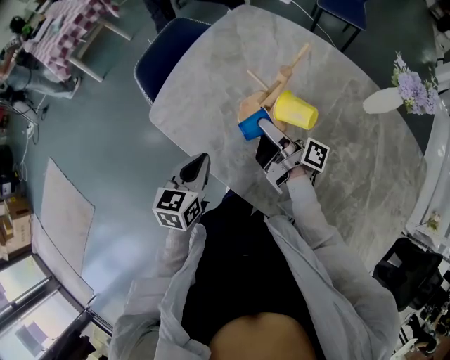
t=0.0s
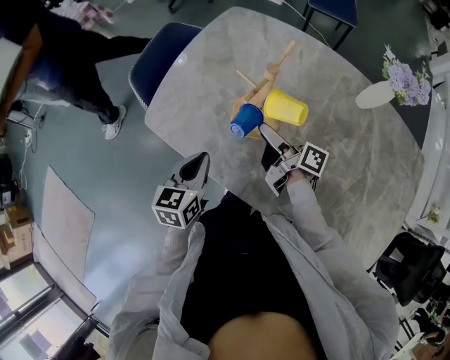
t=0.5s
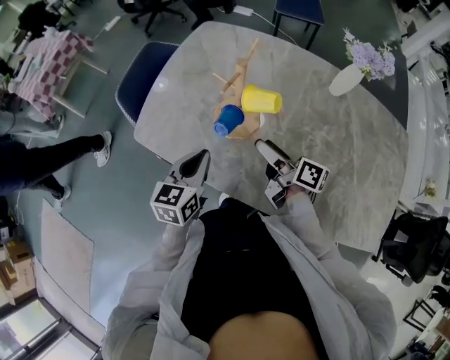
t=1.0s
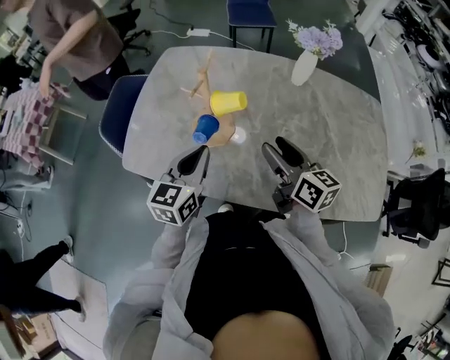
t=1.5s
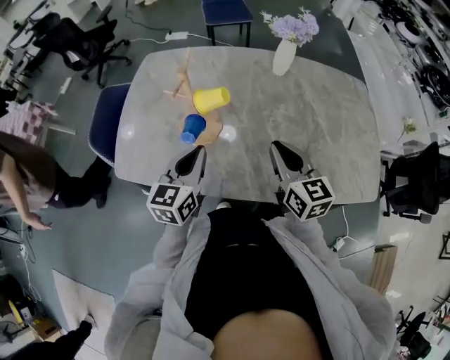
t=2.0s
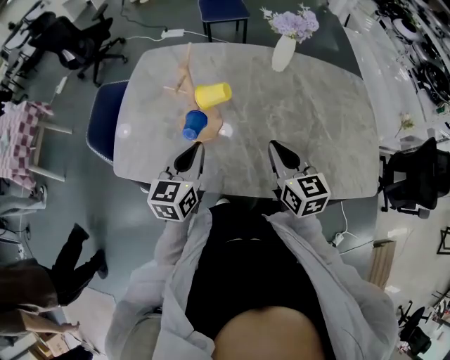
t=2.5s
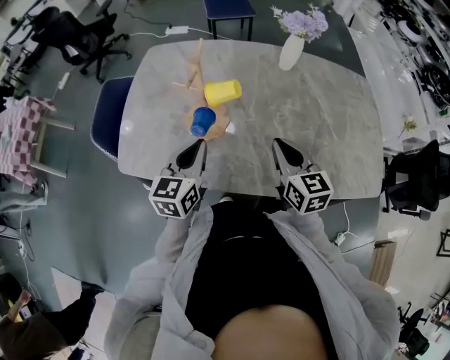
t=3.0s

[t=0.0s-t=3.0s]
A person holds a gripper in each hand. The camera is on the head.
t=0.0s to t=1.5s: The right gripper changes place by roughly 20 cm, and twists about 60 degrees counterclockwise, seen from behind; the left gripper shifts by approximately 15 cm, and rotates roughly 30 degrees.
t=1.5s to t=3.0s: The right gripper swivels about 30 degrees, and closes up.

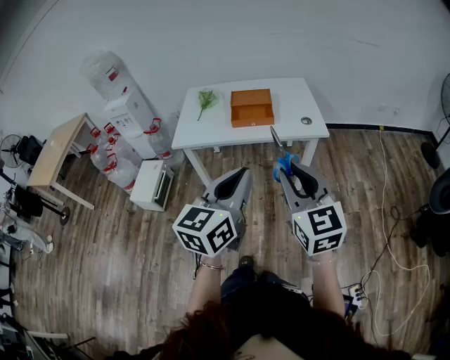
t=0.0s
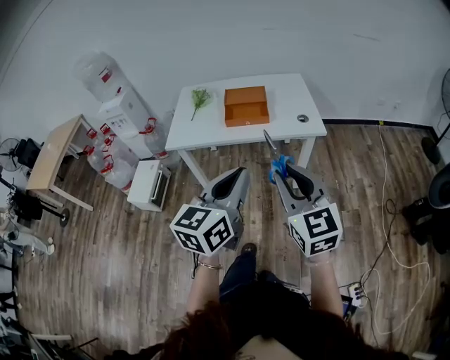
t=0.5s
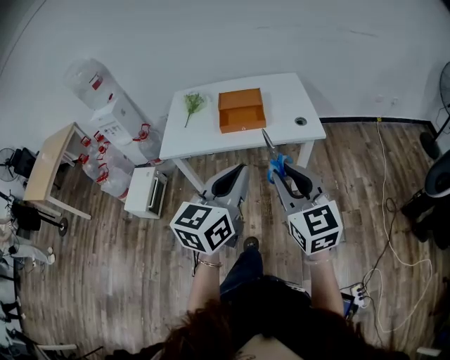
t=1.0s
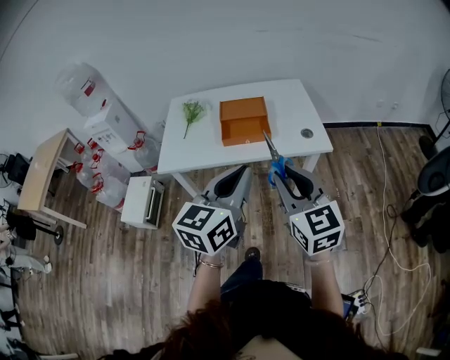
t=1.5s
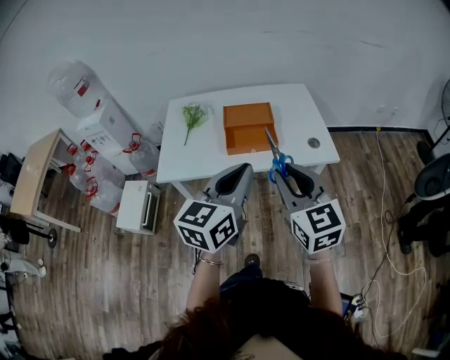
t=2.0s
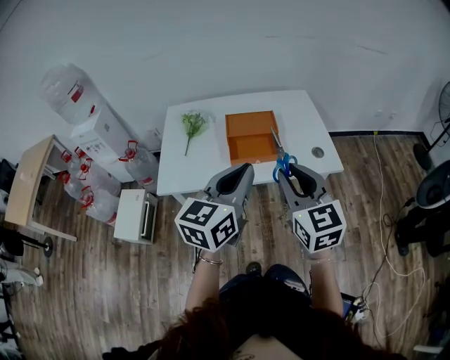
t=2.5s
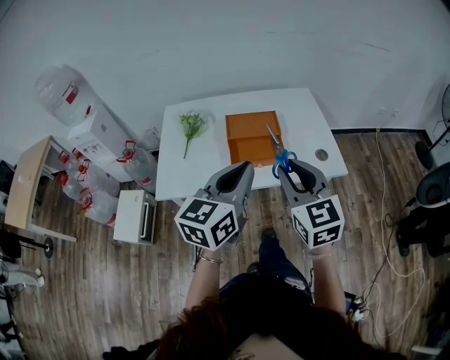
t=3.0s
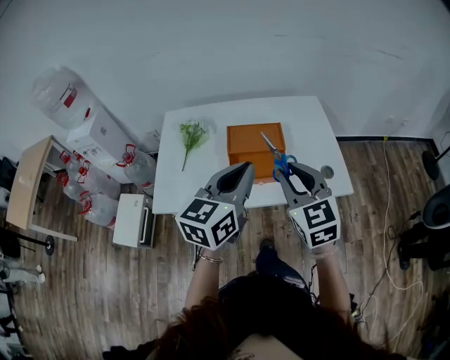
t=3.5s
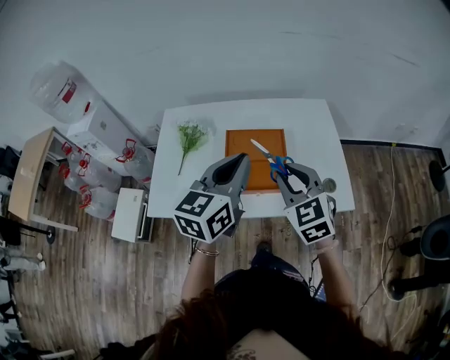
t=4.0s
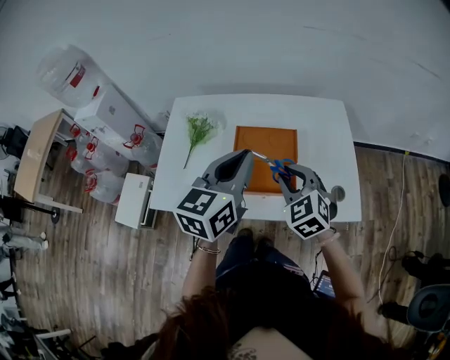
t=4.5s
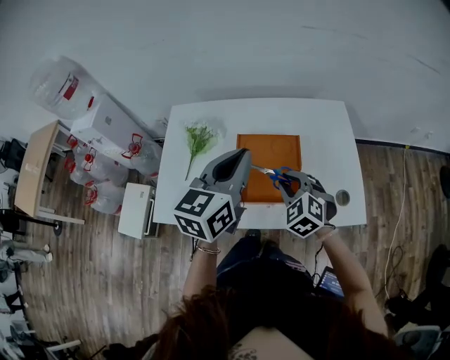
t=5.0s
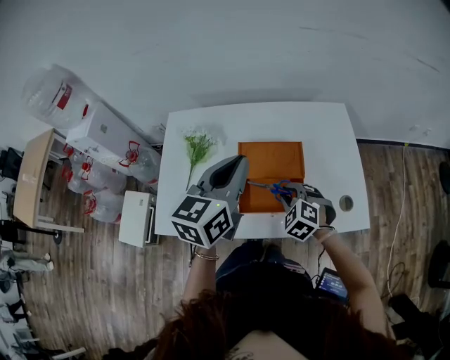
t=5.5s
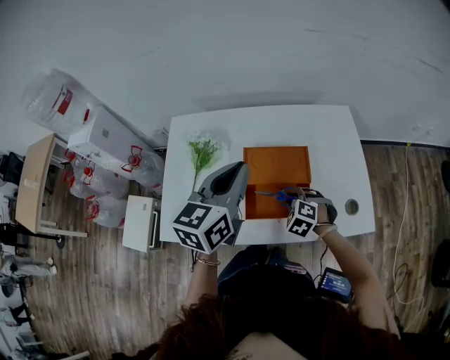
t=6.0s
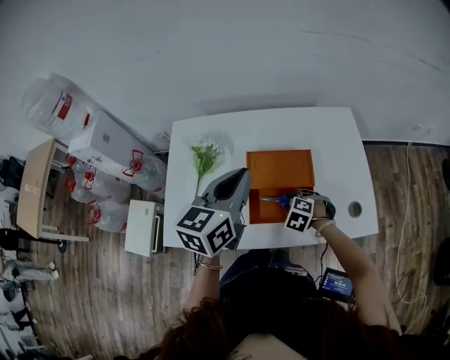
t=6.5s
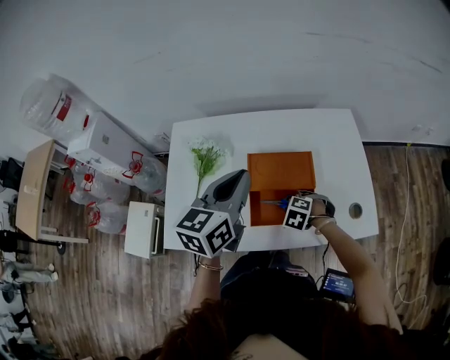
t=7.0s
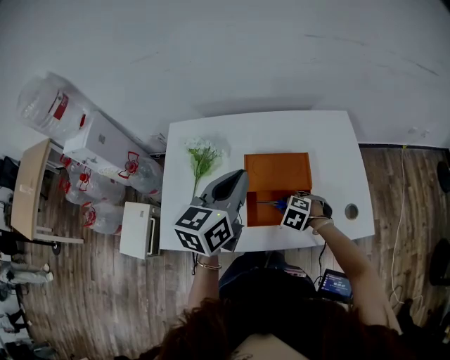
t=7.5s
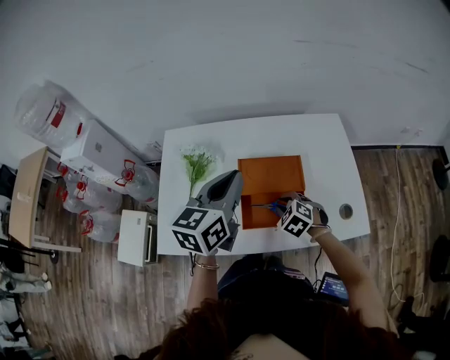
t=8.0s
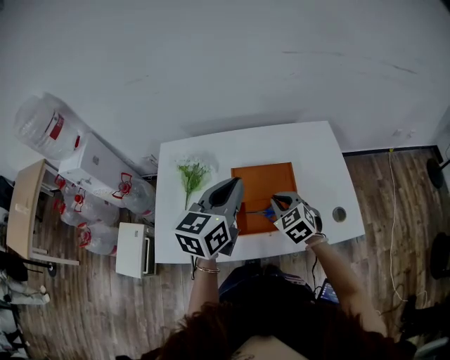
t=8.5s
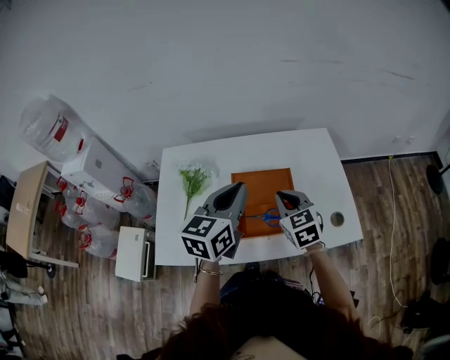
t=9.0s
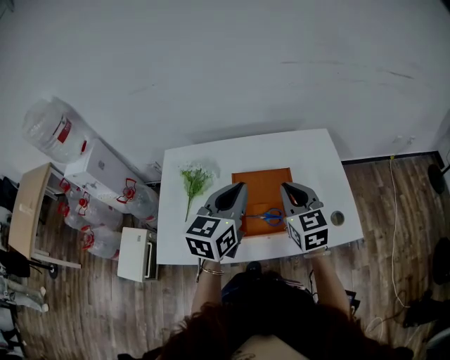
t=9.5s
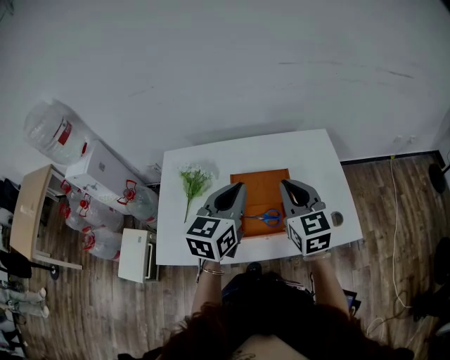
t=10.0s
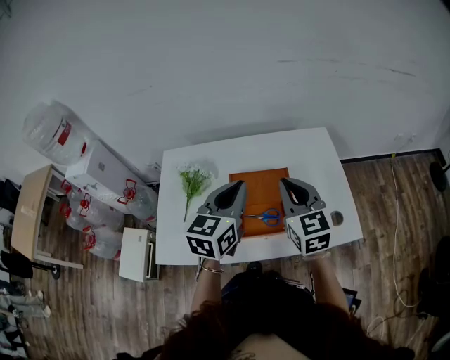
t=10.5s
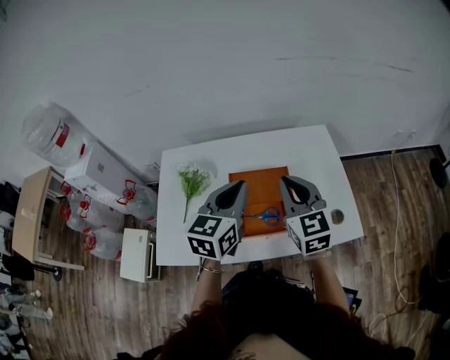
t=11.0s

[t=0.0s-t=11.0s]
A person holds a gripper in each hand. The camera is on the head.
t=0.0s to t=2.0s: The grippers both shift forward by roughly 25 cm.
t=2.0s to t=3.5s: The two grippers go approximately 20 cm forward.
t=3.5s to t=5.5s: The right gripper shifts about 25 cm downward and forward, and tilts its fingers roughly 40 degrees downward, while the left gripper moves forward, some 20 cm.
t=5.5s to t=7.5s: The right gripper travels downward by roughly 10 cm, and swivels roughly 20 degrees.
t=7.5s to t=9.0s: The right gripper is displaced upward by approximately 20 cm, points its fingers roughly 50 degrees further upward, and closes its fingers.
t=9.0s to t=11.0s: The right gripper goes about 10 cm upward.

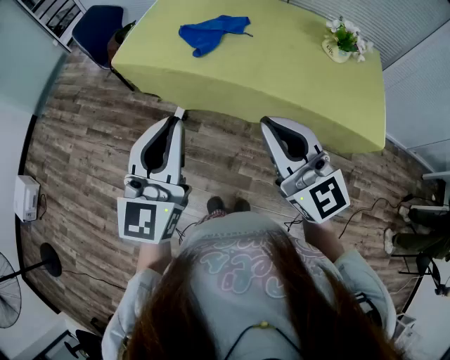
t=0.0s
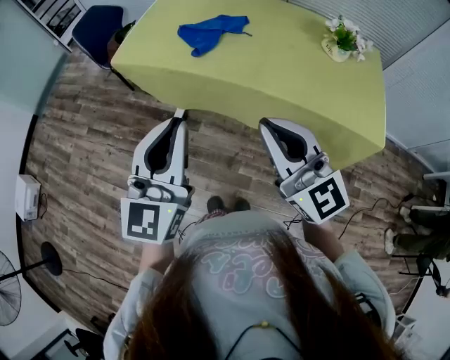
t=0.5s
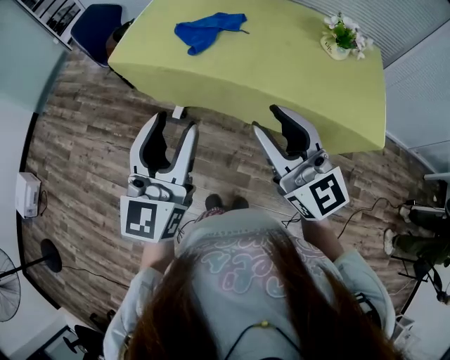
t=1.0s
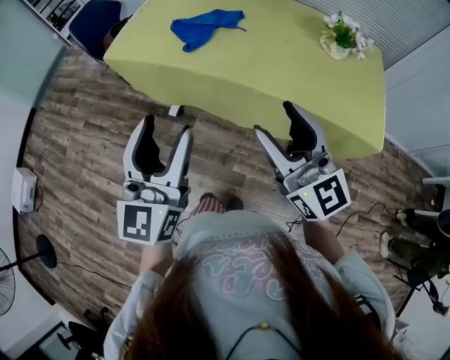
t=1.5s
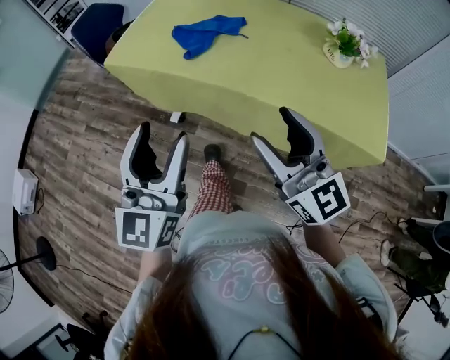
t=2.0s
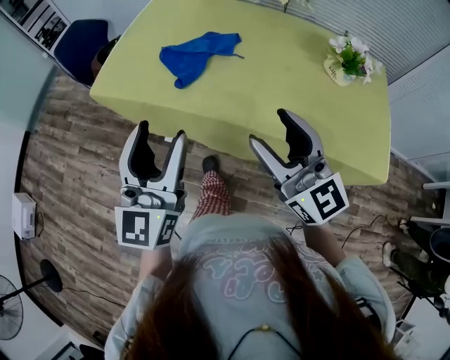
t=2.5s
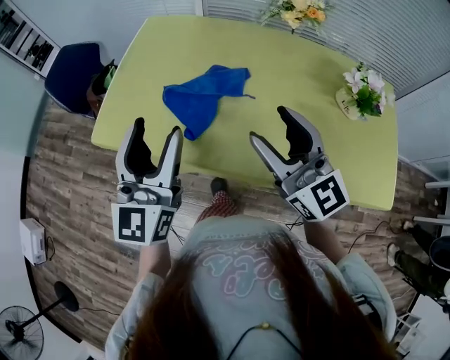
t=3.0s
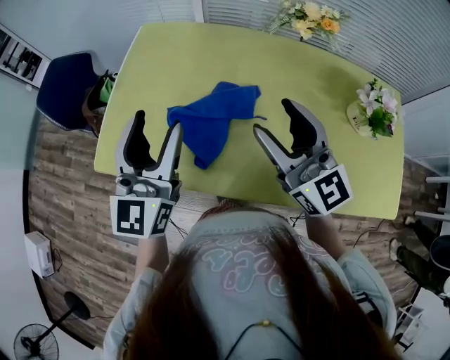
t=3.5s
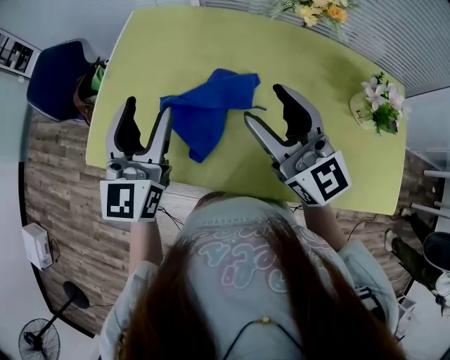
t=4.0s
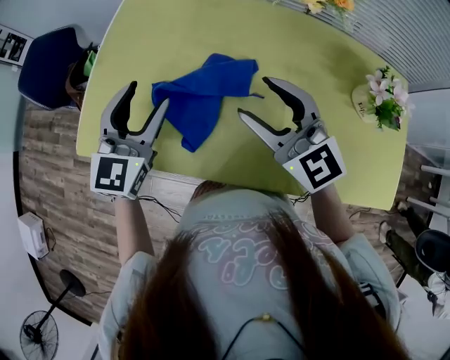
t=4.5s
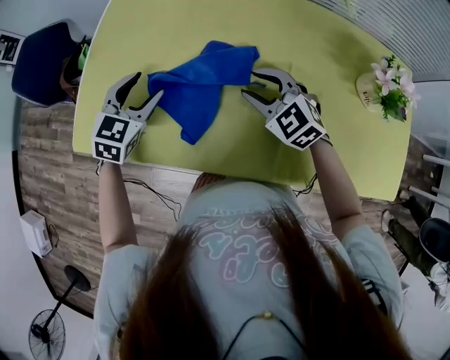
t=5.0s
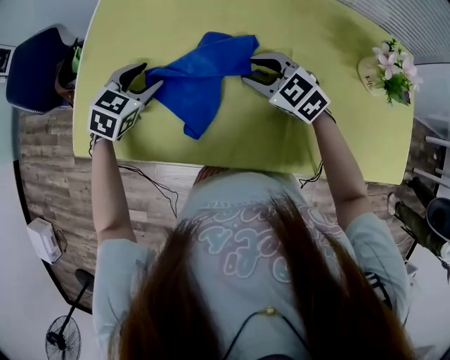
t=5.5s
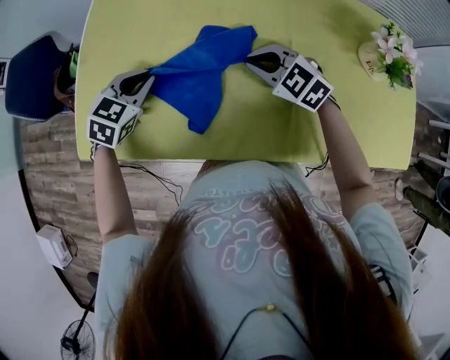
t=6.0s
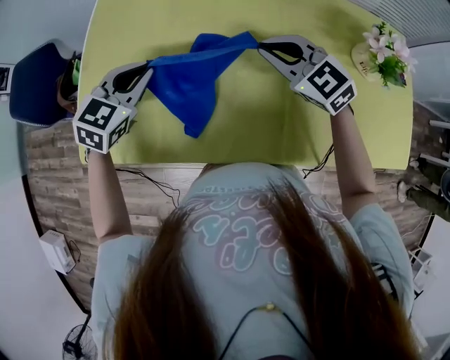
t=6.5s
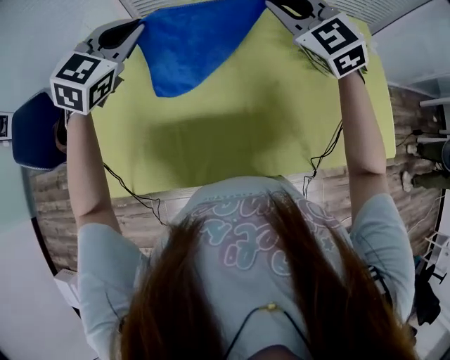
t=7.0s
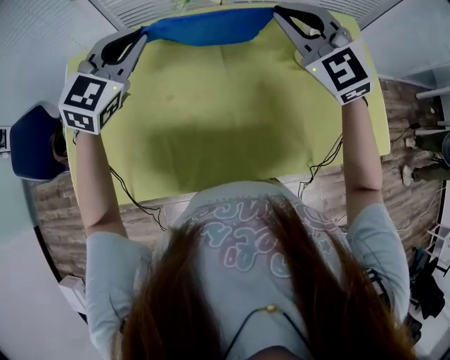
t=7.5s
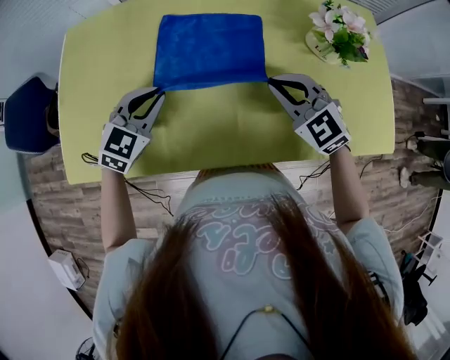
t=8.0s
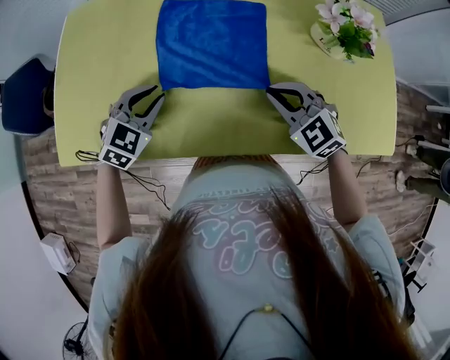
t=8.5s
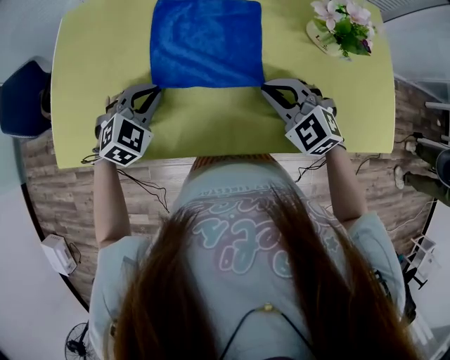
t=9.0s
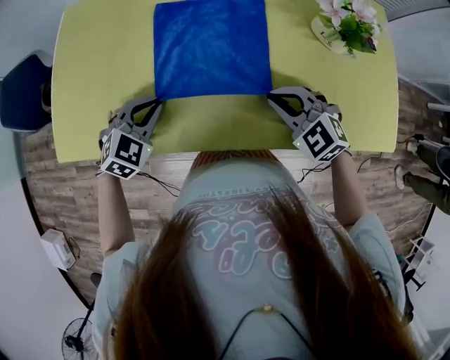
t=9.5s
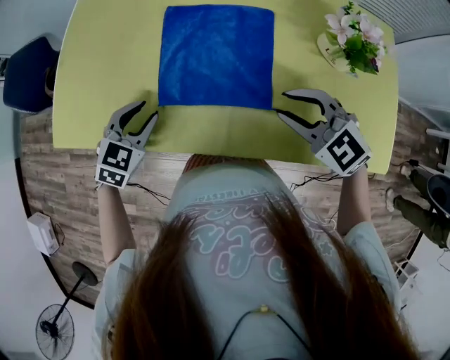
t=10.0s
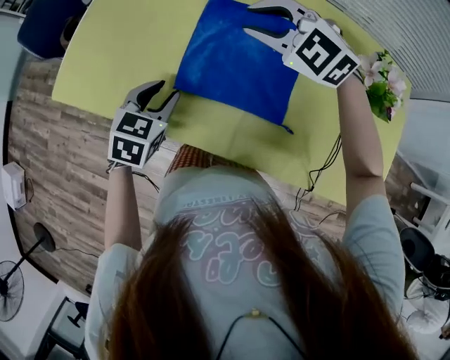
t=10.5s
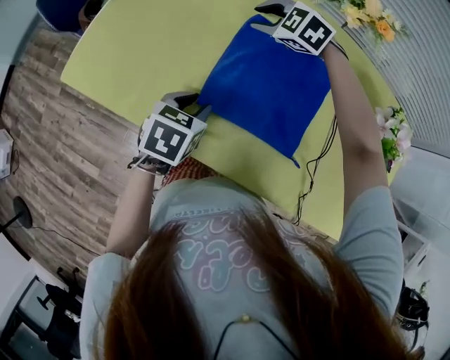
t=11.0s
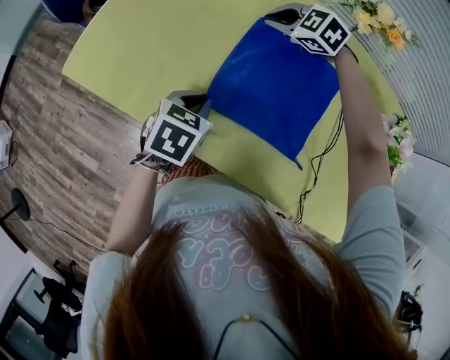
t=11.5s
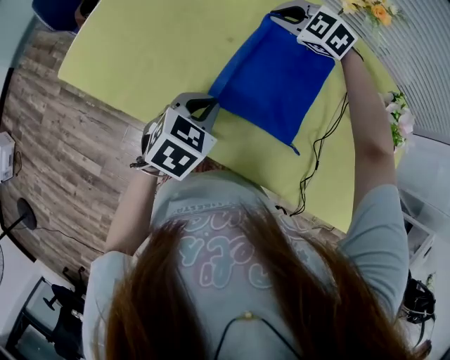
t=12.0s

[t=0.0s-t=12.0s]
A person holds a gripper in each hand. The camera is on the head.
t=0.0s to t=2.0s: The left gripper opens; the right gripper moves to the right, about 5 cm, and opens up.
t=2.0s to t=4.0s: Both grippers travel together forward, approximately 40 cm.
t=4.0s to t=6.0s: The grippers both shift downward by some 20 cm. The right gripper points its fingers some 50 degrees further downward, and closes, while the left gripper tilts its fingers approximately 40 degrees downward, and closes up.
t=6.0s to t=8.0s: Both grippers move to the right, about 20 cm. The left gripper reaches roughly 20 cm upward, then returns; the right gripper goes upward and returns, roughly 25 cm each way, and swivels approximately 20 degrees.
t=8.0s to t=10.0s: Both grippers travel together backward, about 10 cm. The left gripper opens its fingers. Meanwhile the right gripper rotates roughly 20 degrees, and opens.
t=10.0s to t=12.0s: The left gripper moves to the right, approximately 5 cm, changes its angle by roughly 20 degrees, and closes. Meanwhile the right gripper shifts about 30 cm forward, turns by roughly 20 degrees, and closes.
